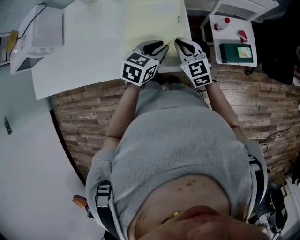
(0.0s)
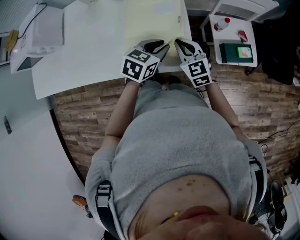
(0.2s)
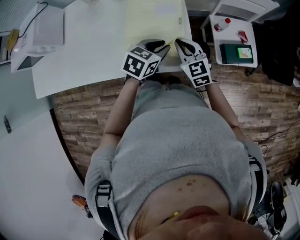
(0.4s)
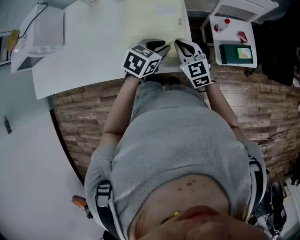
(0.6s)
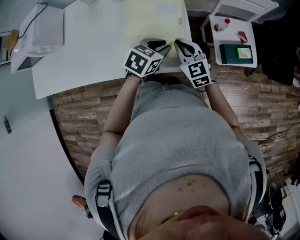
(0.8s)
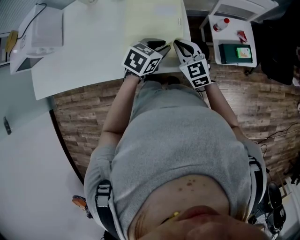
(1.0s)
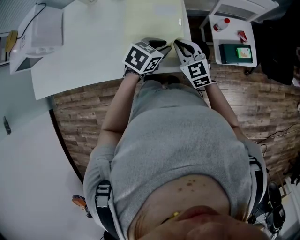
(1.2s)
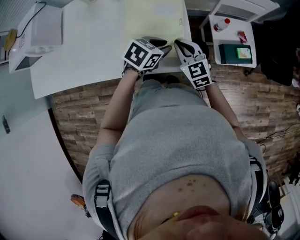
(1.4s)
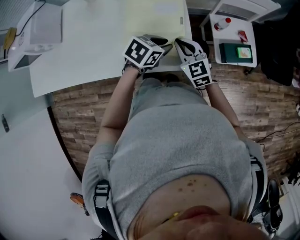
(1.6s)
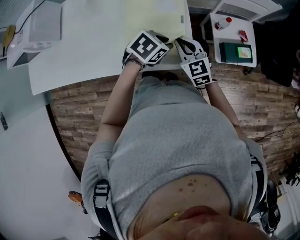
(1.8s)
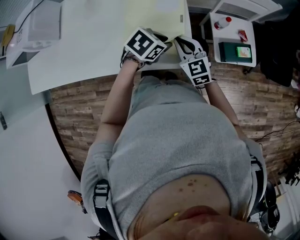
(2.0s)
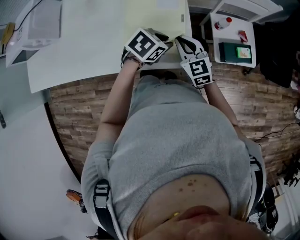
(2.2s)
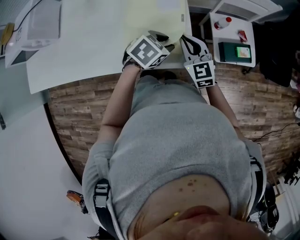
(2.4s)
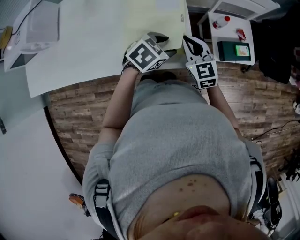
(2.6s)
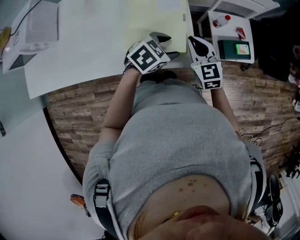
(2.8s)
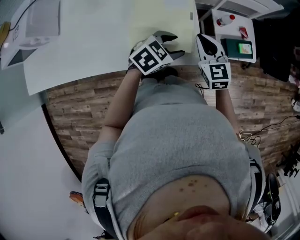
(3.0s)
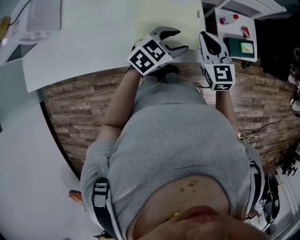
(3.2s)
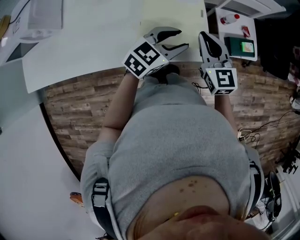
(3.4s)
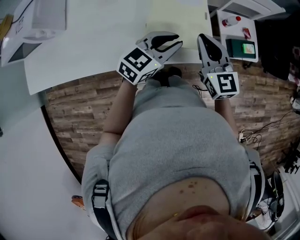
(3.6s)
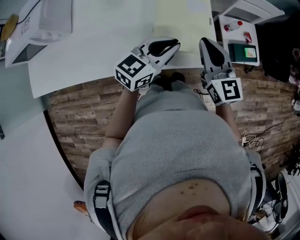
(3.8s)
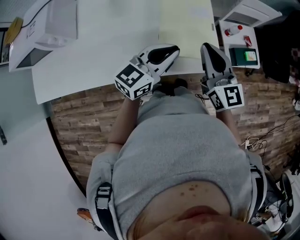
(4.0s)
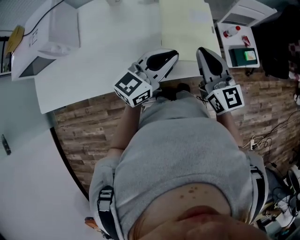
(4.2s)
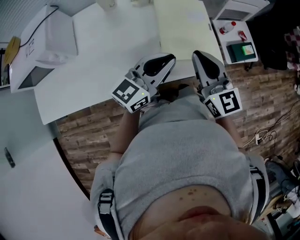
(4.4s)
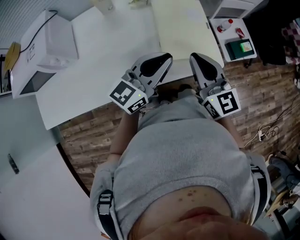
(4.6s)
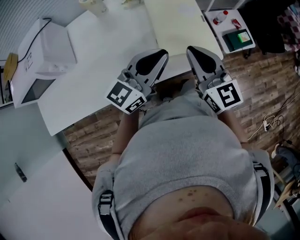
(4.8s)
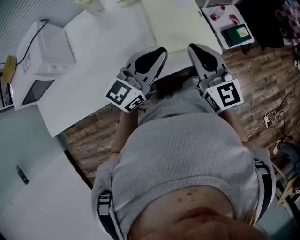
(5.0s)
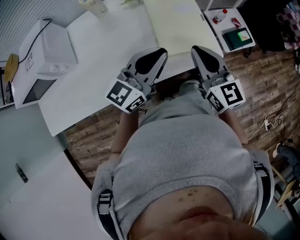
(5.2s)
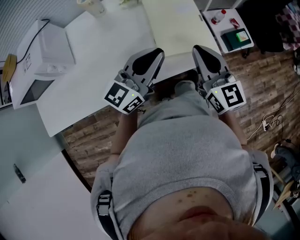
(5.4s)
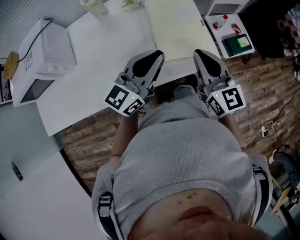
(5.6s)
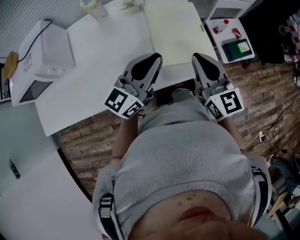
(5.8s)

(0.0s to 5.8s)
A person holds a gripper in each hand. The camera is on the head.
0.0s - 1.4s: The grippers stay close to where they were, moving slightly.
1.4s - 2.8s: The left gripper opens its fingers.
2.8s - 4.4s: The right gripper travels upward, to the left and backward by roughly 25 cm, and turns by some 20 degrees. Meanwhile the left gripper travels to the left, upward and backward by approximately 25 cm, angles its fingers upward, by roughly 50 degrees, and closes its fingers.
4.4s - 5.8s: The grippers move only a little.

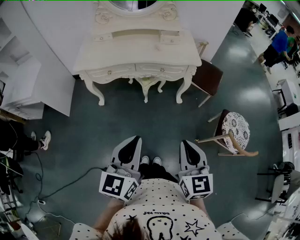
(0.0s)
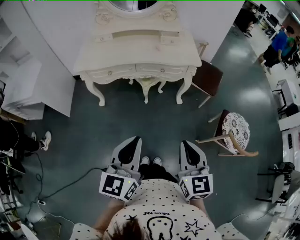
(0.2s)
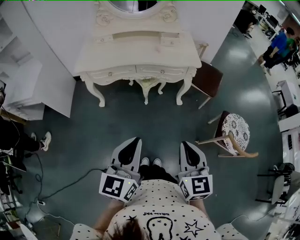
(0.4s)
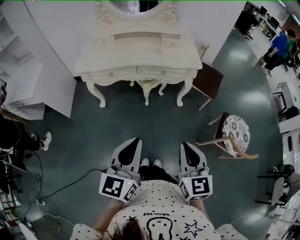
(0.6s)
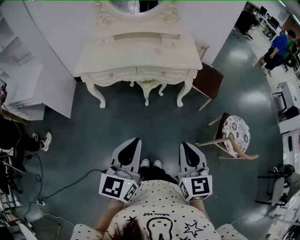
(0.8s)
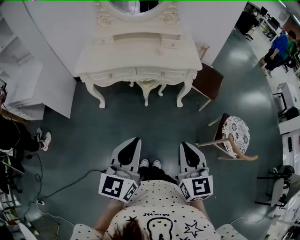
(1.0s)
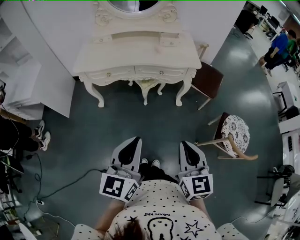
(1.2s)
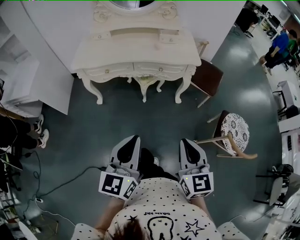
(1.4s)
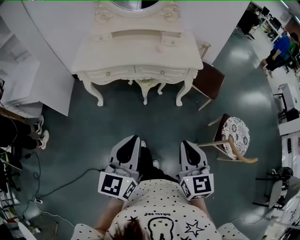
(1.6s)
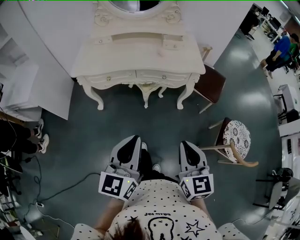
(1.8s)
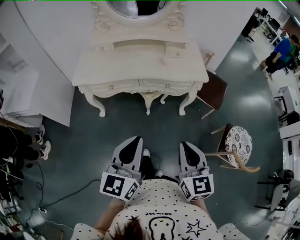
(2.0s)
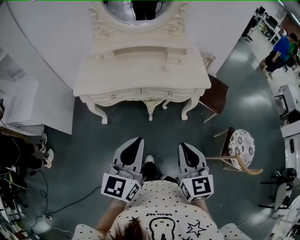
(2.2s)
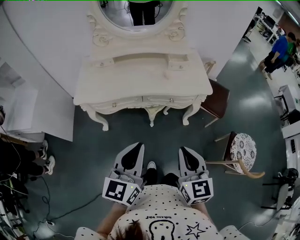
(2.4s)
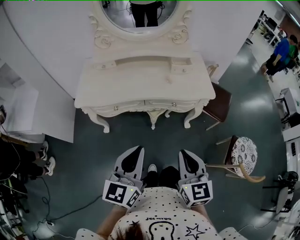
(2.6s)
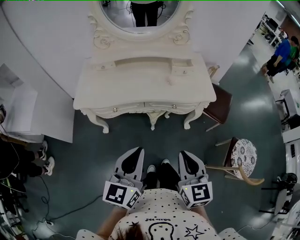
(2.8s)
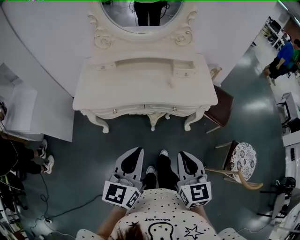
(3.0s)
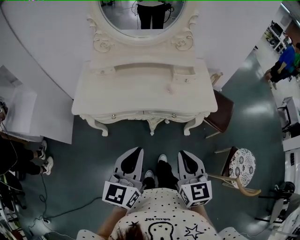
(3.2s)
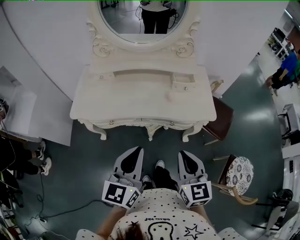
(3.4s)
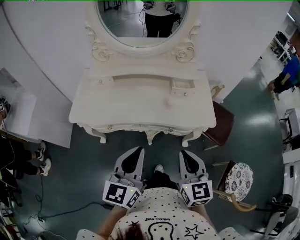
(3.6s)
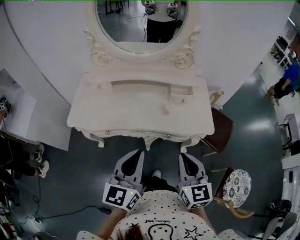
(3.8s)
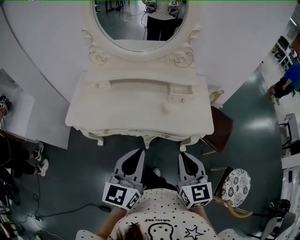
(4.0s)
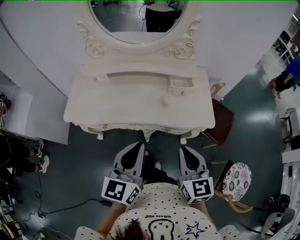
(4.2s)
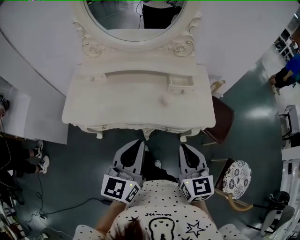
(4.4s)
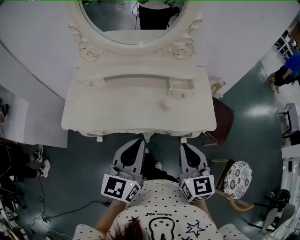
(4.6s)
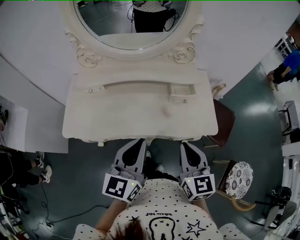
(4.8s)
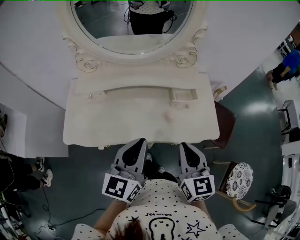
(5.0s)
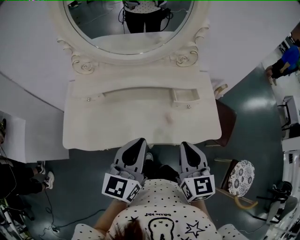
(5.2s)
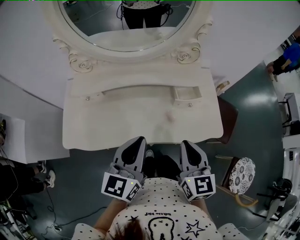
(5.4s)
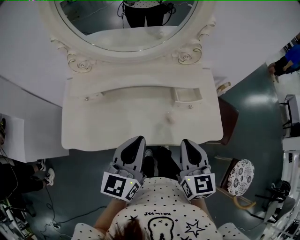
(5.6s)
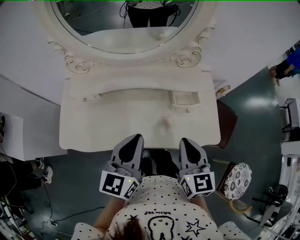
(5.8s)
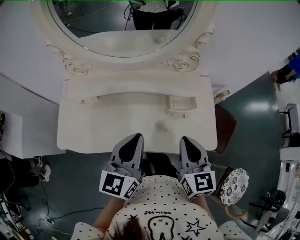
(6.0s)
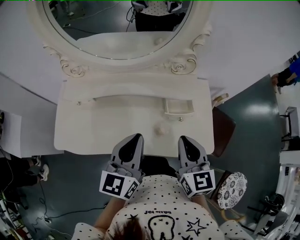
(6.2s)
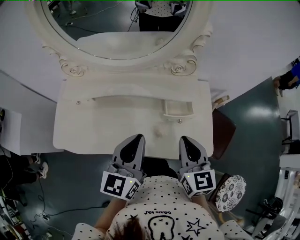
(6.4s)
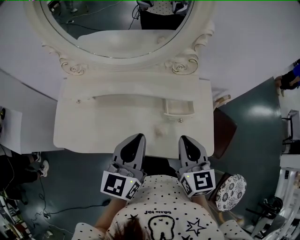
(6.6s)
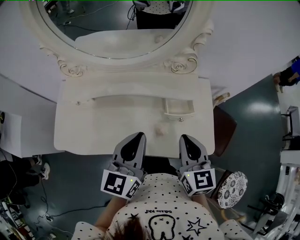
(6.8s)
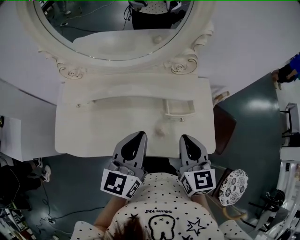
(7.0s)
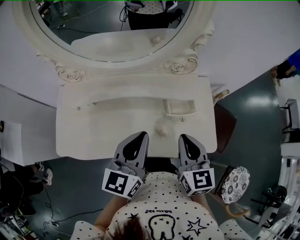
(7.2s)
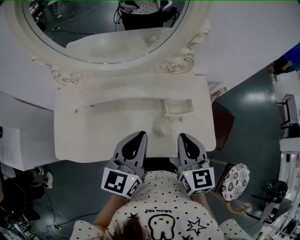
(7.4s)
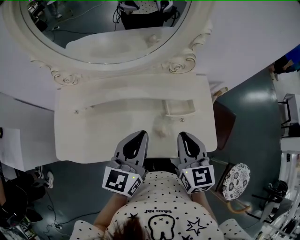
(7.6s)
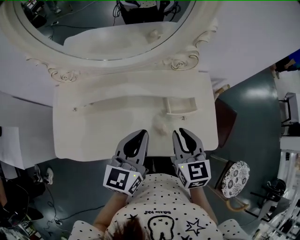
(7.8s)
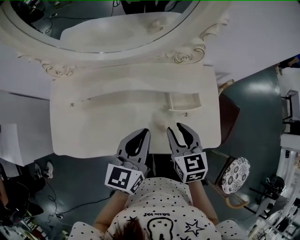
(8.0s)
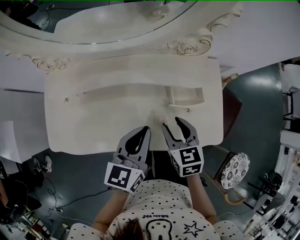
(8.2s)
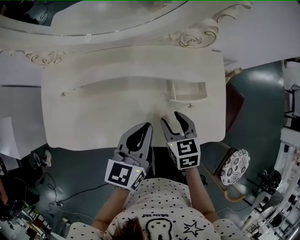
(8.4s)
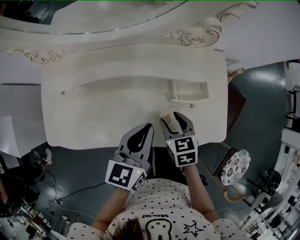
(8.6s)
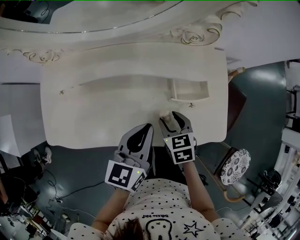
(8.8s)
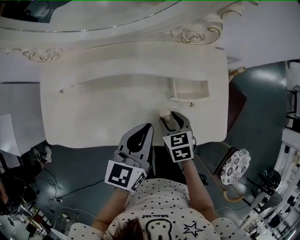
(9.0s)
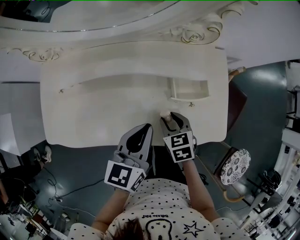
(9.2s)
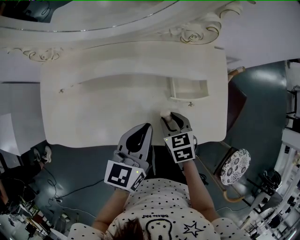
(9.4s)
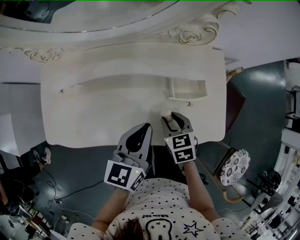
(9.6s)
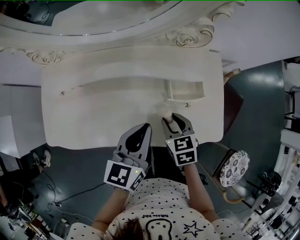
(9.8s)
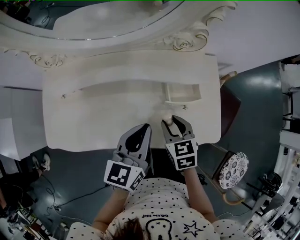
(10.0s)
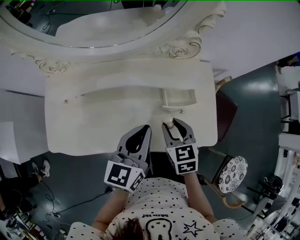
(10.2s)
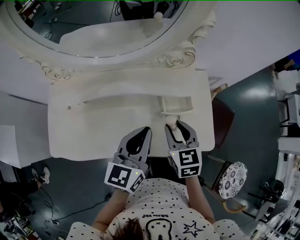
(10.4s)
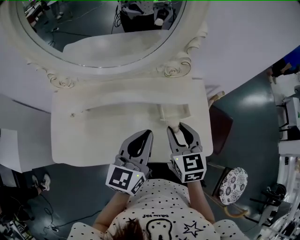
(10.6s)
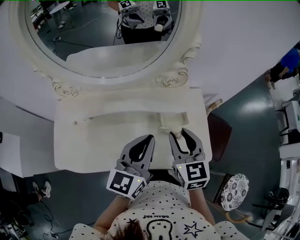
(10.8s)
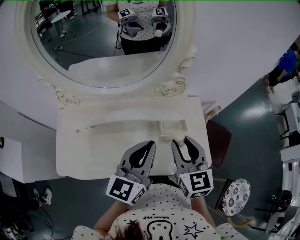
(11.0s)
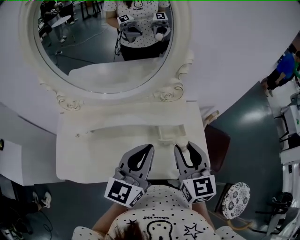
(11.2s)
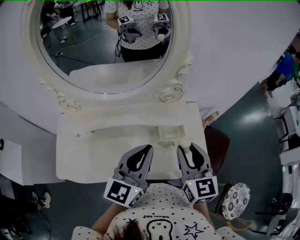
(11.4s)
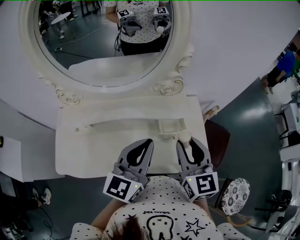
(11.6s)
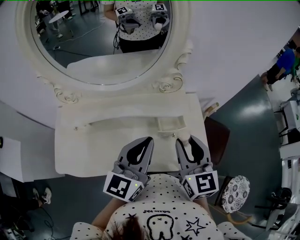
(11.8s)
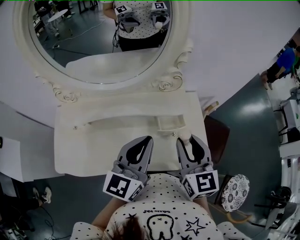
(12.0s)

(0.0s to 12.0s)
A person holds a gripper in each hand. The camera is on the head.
0.0s - 1.6s: The grippers make only small movements.
1.6s - 3.0s: The left gripper heads forward, covering about 20 cm. Meanwhile the right gripper shifts some 25 cm forward and to the left.
3.0s - 4.4s: The two grippers go some 15 cm forward.
4.4s - 6.0s: Both grippers move forward, about 20 cm.
6.0s - 7.6s: The left gripper travels forward by roughly 5 cm. Meanwhile the right gripper moves some 5 cm.
7.6s - 9.0s: The left gripper goes about 10 cm downward. Meanwhile the right gripper is displaced downward by approximately 20 cm, points its fingers roughly 30 degrees further downward, and opens its fingers.
9.0s - 10.4s: The right gripper travels upward by roughly 15 cm, and rotates some 20 degrees. The left gripper travels upward by about 5 cm.
10.4s - 12.0s: The right gripper is displaced upward by some 15 cm, and turns by roughly 20 degrees. Meanwhile the left gripper heads upward, covering roughly 10 cm.

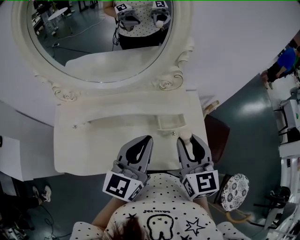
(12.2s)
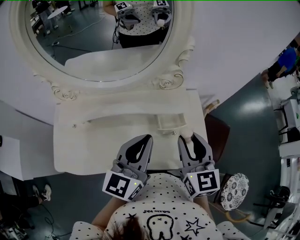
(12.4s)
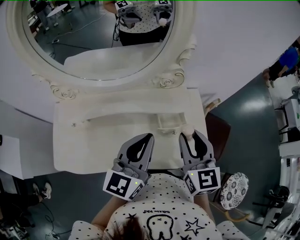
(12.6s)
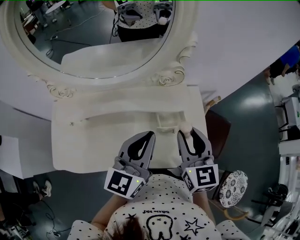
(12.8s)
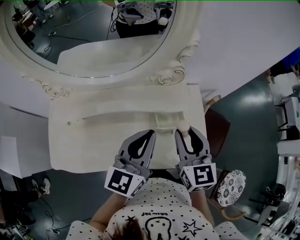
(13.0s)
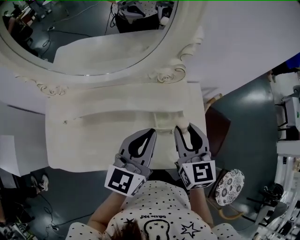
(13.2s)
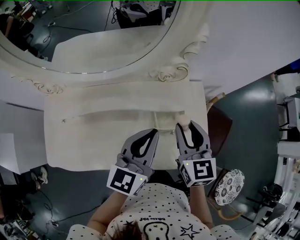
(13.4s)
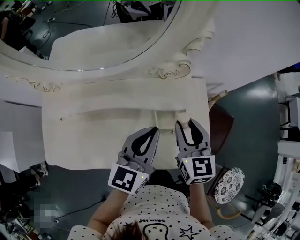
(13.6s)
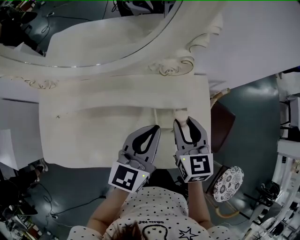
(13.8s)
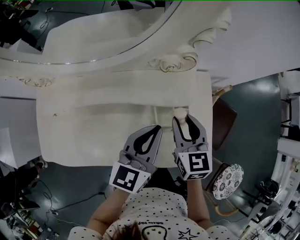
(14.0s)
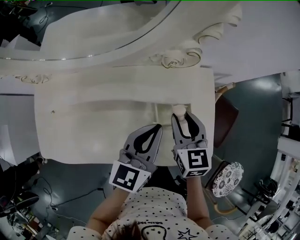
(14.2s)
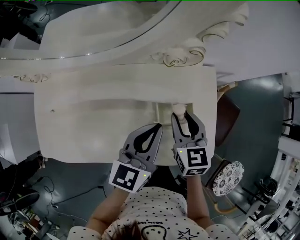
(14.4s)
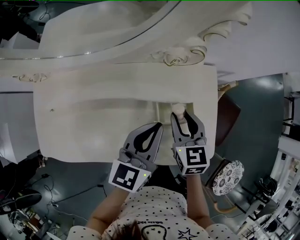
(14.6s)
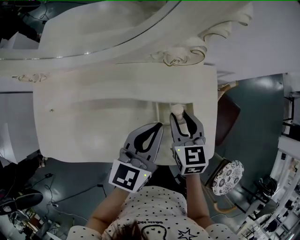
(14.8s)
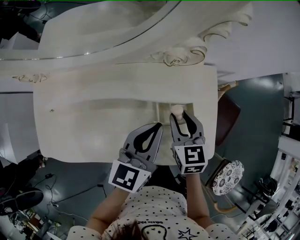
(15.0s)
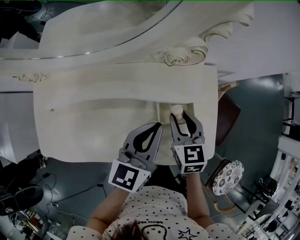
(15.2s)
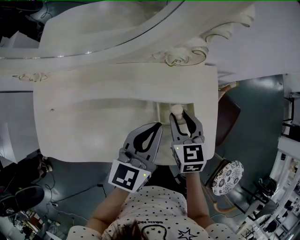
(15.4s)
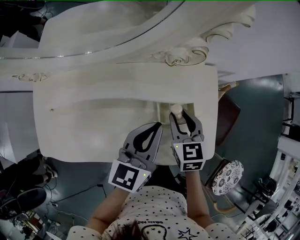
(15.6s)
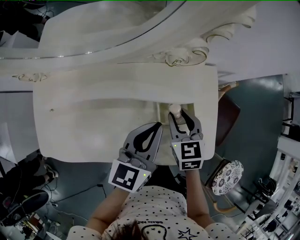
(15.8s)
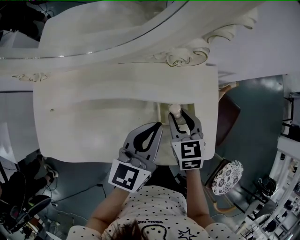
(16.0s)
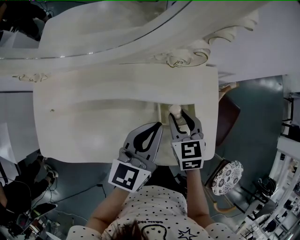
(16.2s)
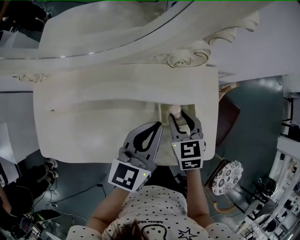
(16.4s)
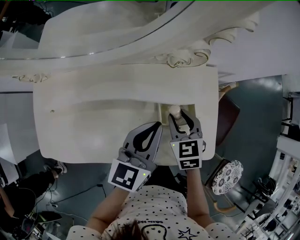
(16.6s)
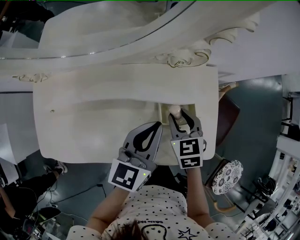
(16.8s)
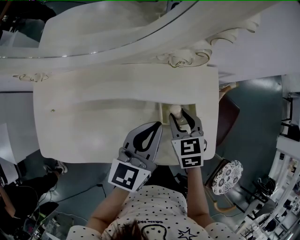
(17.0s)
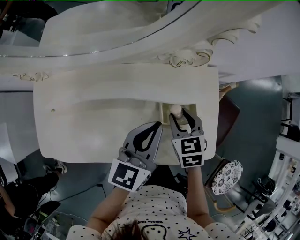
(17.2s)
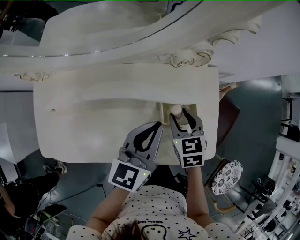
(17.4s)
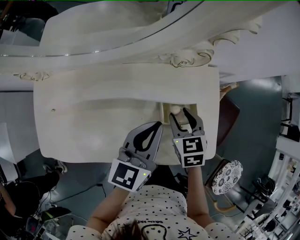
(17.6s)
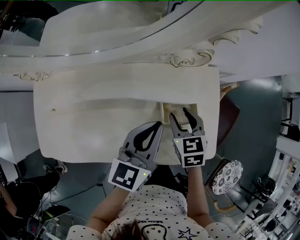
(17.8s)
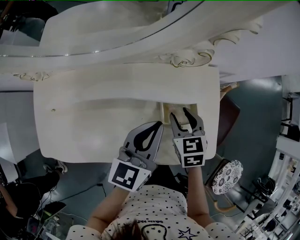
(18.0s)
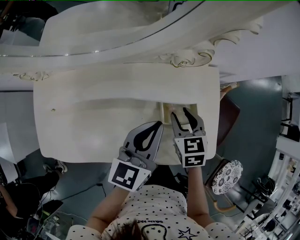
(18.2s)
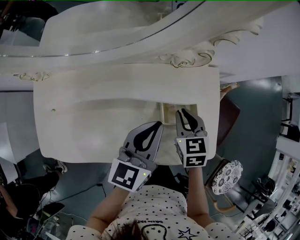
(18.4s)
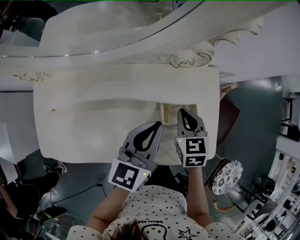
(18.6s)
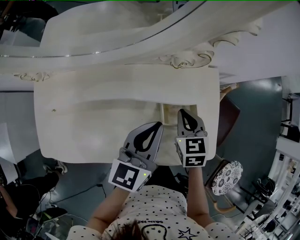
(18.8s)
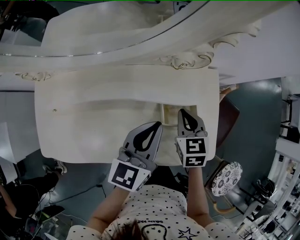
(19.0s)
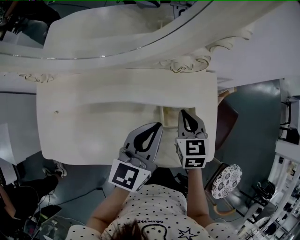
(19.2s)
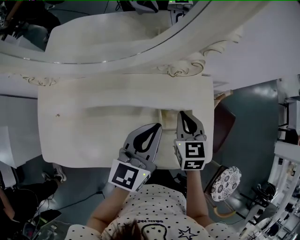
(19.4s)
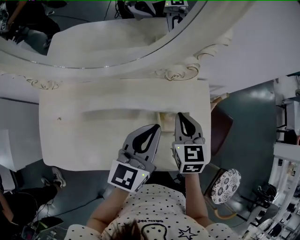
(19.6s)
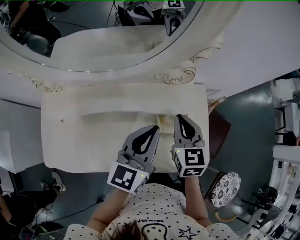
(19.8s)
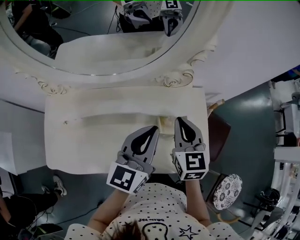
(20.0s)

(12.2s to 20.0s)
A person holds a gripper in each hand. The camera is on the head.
12.2s - 13.8s: The grippers both shift downward and forward by some 15 cm.
13.8s - 15.4s: The right gripper is displaced downward by approximately 10 cm.
15.4s - 18.4s: The grippers move only a little.
18.4s - 20.0s: The left gripper is displaced upward by roughly 10 cm, while the right gripper heads upward, covering roughly 15 cm, and changes its angle by approximately 20 degrees.
